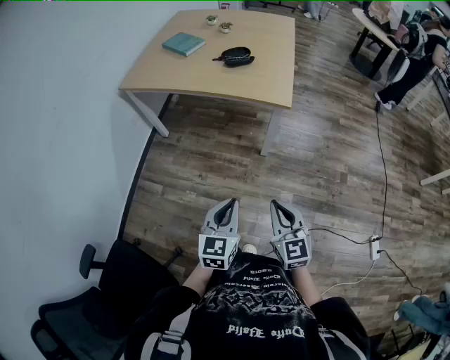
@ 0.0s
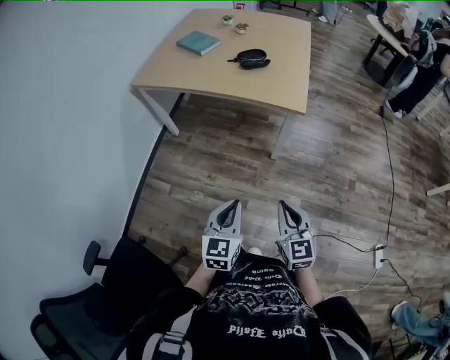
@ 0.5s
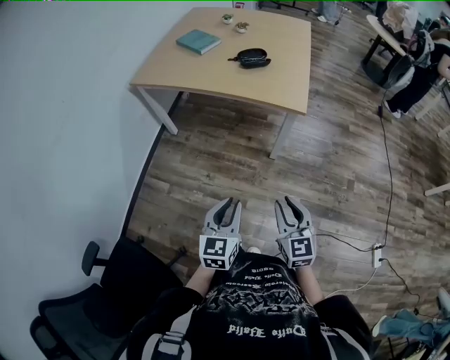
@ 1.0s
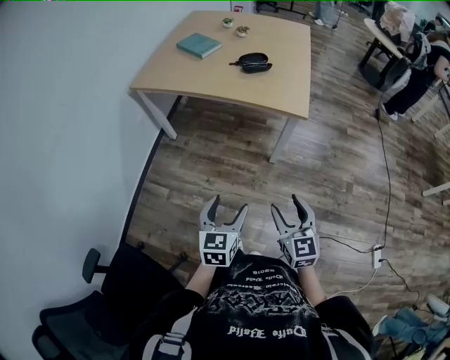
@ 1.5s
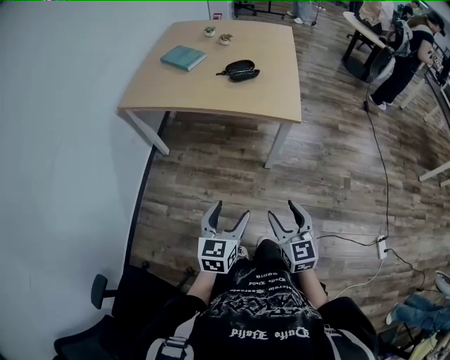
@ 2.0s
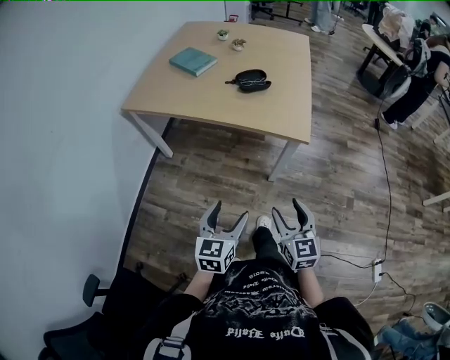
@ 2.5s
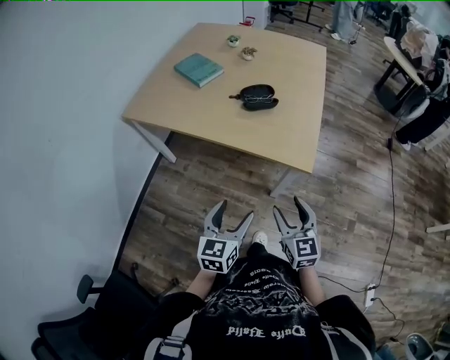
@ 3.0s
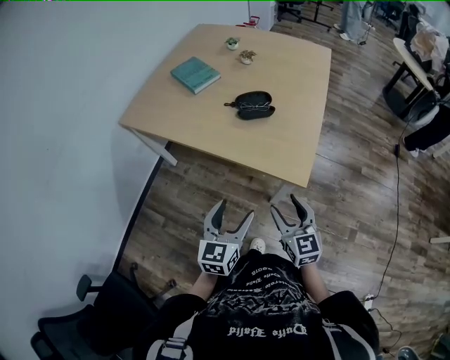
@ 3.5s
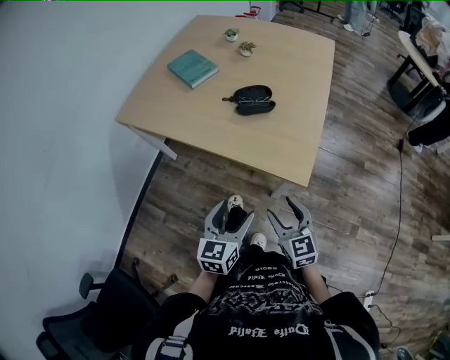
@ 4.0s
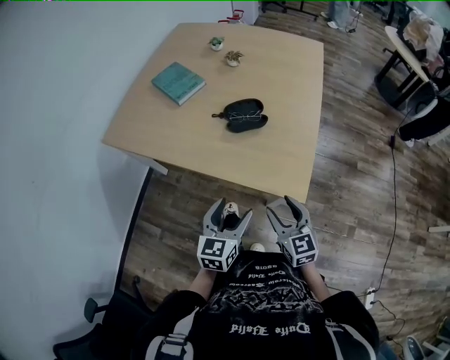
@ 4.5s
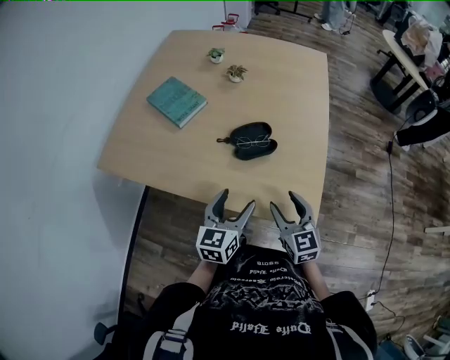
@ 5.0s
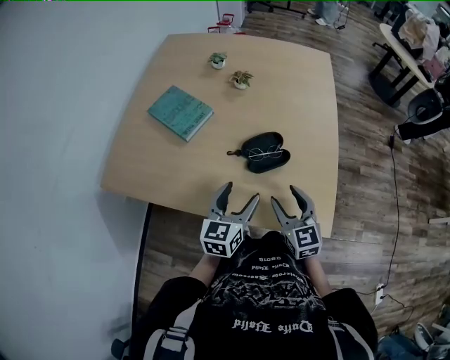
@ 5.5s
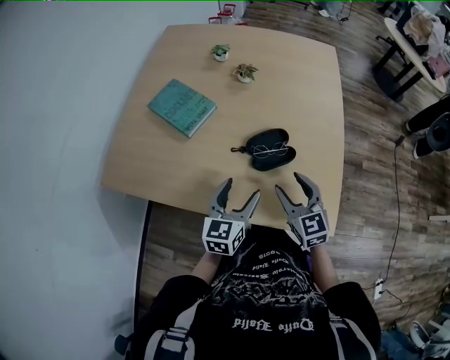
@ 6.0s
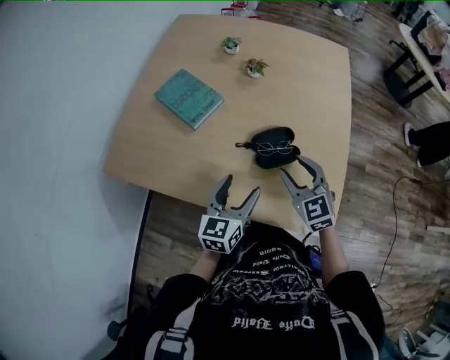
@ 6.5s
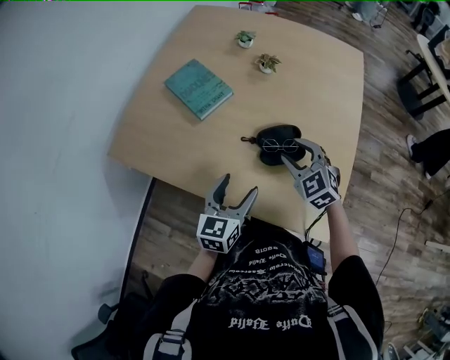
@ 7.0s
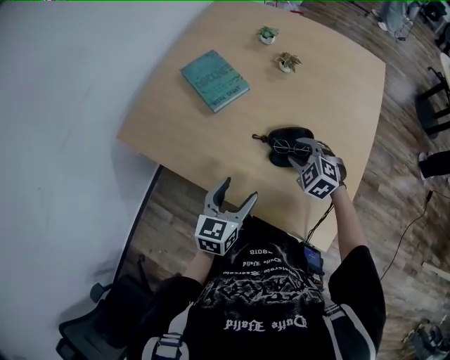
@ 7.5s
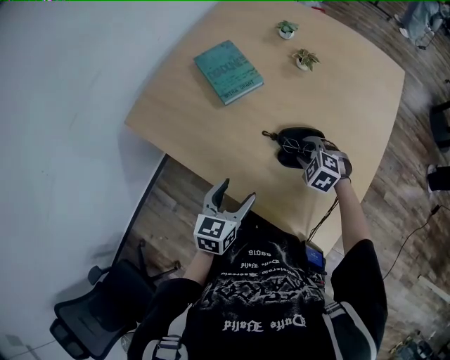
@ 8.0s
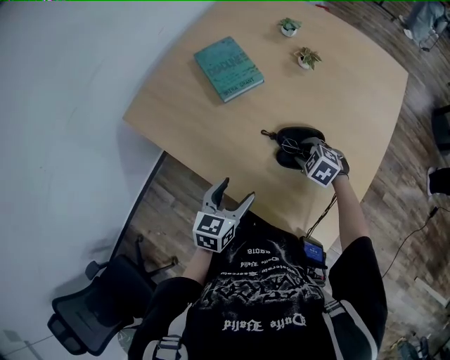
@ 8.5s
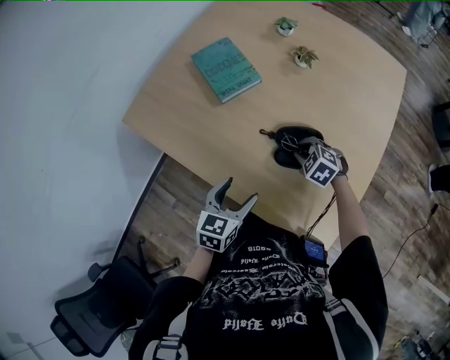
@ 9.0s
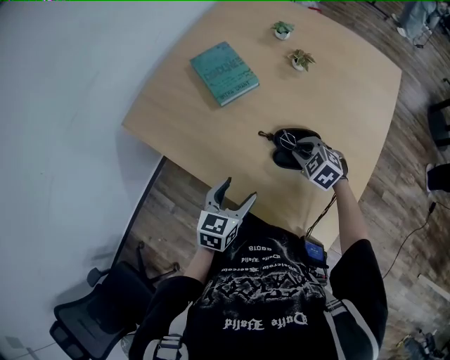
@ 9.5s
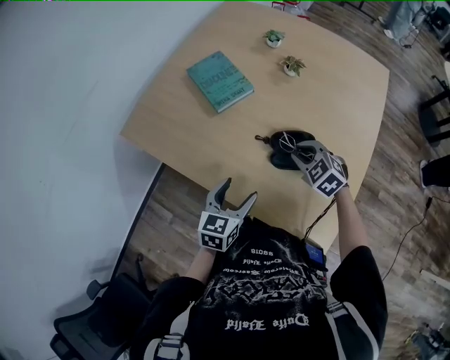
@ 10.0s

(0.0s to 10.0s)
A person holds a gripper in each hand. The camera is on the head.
0.0s - 2.0s: Both grippers travel together to the left and forward, some 10 cm. The right gripper opens its fingers. The left gripper opens up.
2.0s - 4.0s: The right gripper is displaced forward by some 30 cm. The left gripper shifts approximately 30 cm forward and to the right.
4.0s - 6.0s: Both grippers move forward, some 35 cm.
6.0s - 8.0s: The left gripper shifts by roughly 5 cm, and turns by about 20 degrees. Meanwhile the right gripper travels downward and forward by approximately 15 cm, and angles its fingers downward, by about 40 degrees.
8.0s - 10.0s: The right gripper heads upward, covering about 5 cm, and closes up.

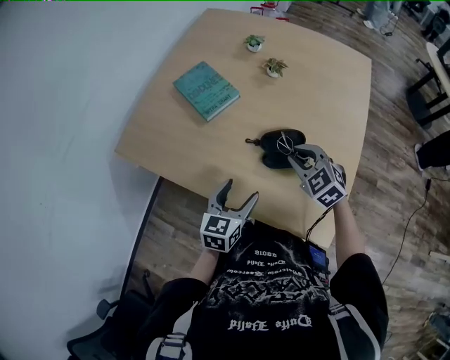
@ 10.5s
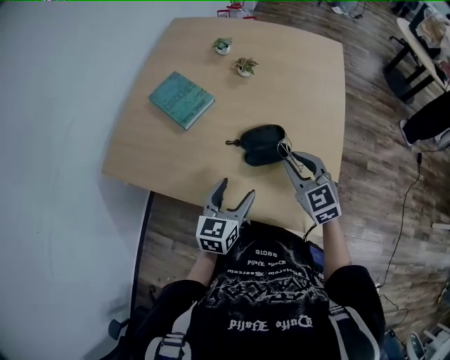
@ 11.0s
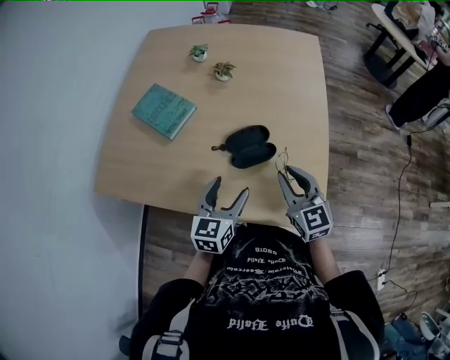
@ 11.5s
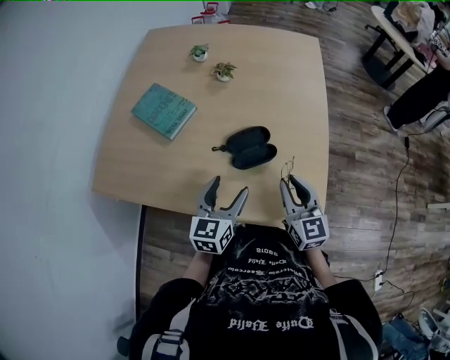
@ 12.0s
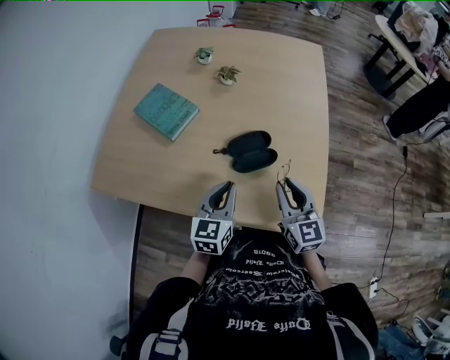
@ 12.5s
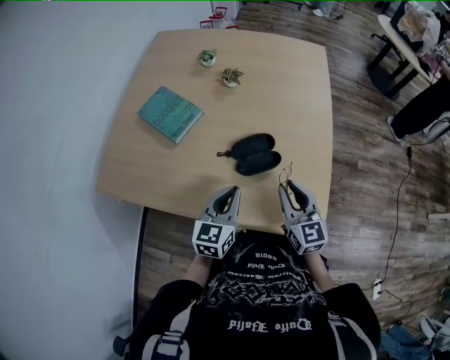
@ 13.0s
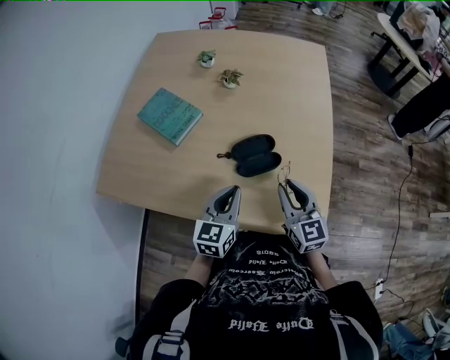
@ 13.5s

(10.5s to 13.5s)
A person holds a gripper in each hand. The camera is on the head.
10.5s - 12.0s: The left gripper ends up roughly 5 cm from where it was. The right gripper moves backward and to the right, approximately 10 cm, and rotates approximately 50 degrees.
12.0s - 13.5s: The left gripper closes.

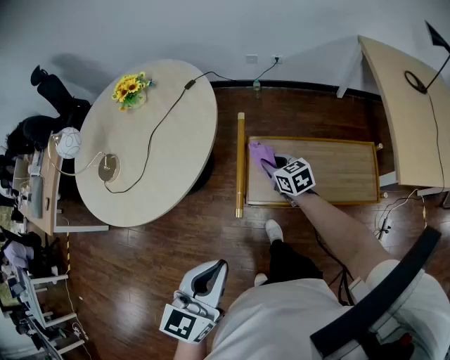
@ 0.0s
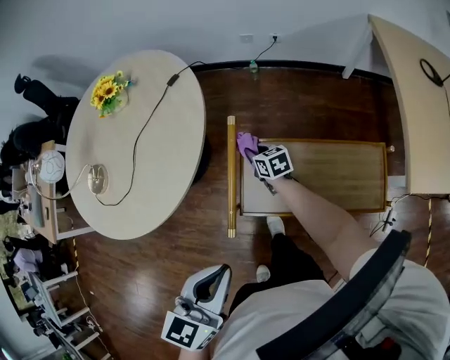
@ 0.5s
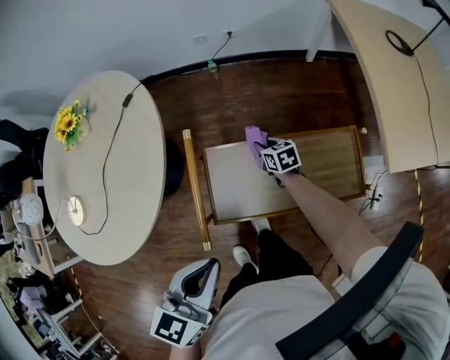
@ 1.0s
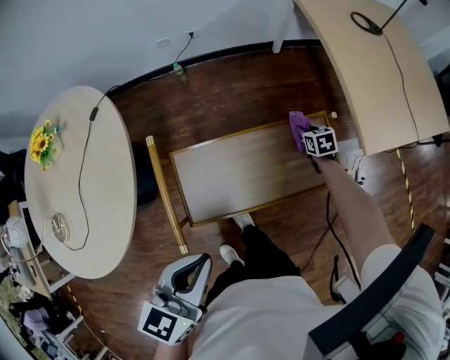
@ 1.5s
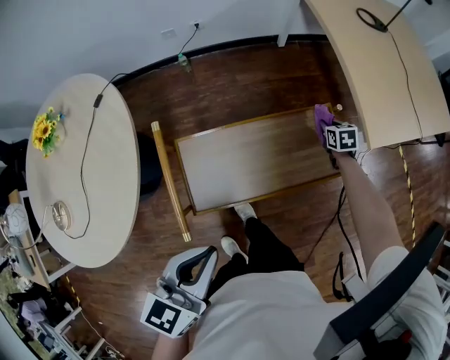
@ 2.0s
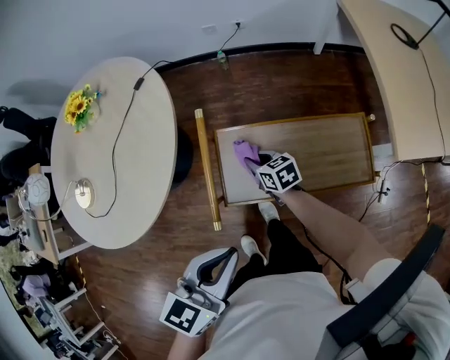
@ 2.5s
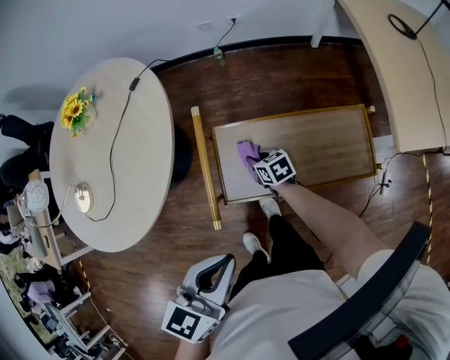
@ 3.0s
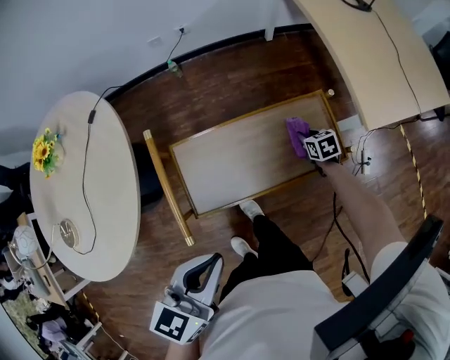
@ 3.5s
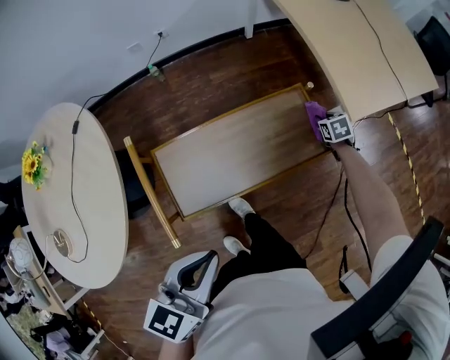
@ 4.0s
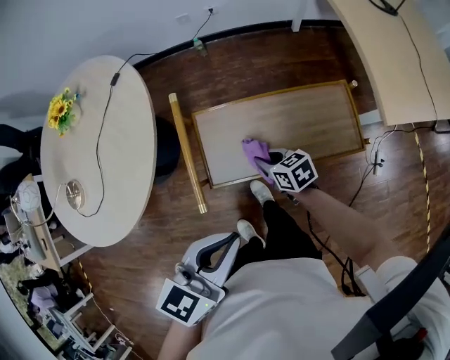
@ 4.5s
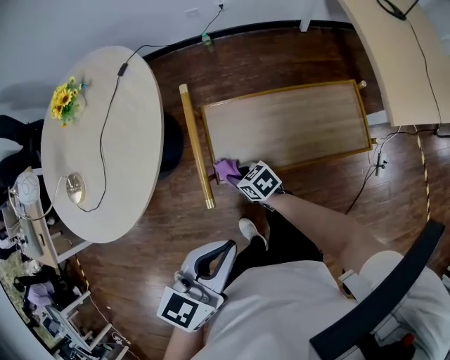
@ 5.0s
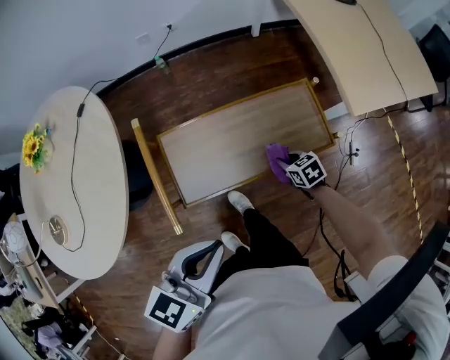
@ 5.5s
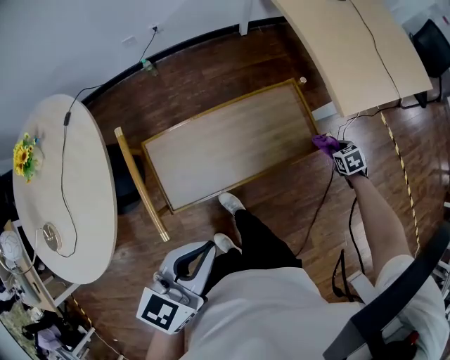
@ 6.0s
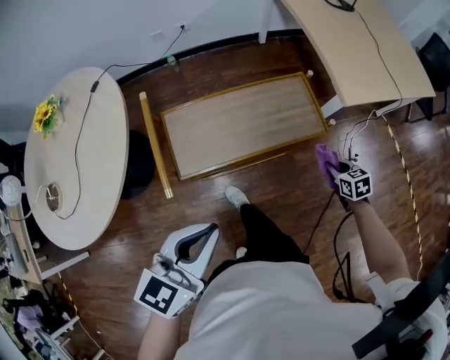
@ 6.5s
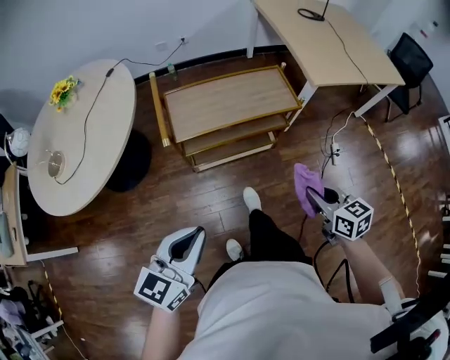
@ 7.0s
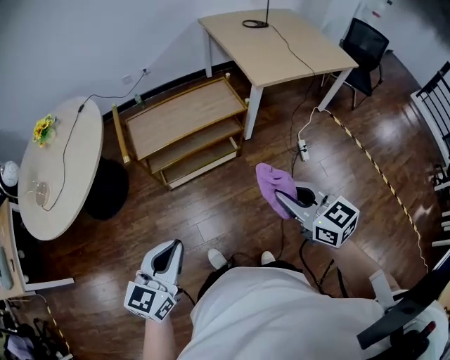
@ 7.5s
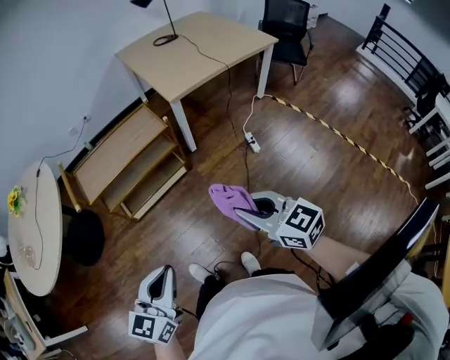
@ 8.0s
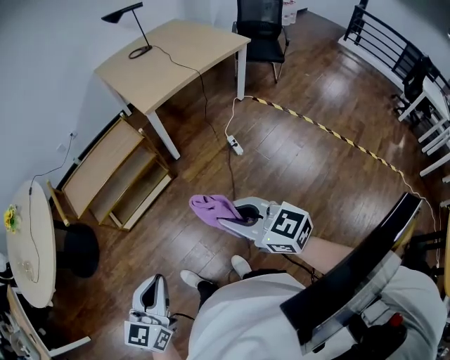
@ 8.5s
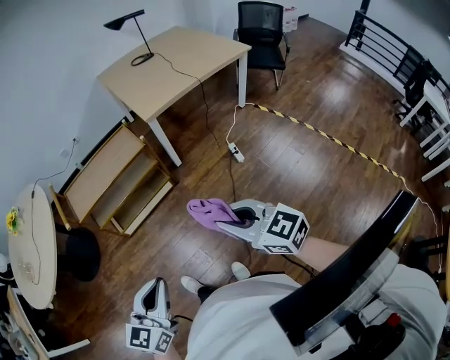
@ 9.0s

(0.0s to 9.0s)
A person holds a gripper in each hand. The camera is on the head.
0.0s - 2.0s: The right gripper shifts by roughly 50 cm, and turns by about 50 degrees. Meanwhile the left gripper ends up some 20 cm from where it was, and rotates roughly 20 degrees.
2.0s - 4.5s: The left gripper ends up about 5 cm from where it was. Meanwhile the right gripper swings up and down, roughly 10 cm each way, with 2 reversals, and rotates about 40 degrees.
4.5s - 7.0s: The right gripper moves roughly 50 cm, and swivels about 30 degrees; the left gripper moves about 25 cm.
7.0s - 9.0s: The left gripper heads to the right and backward, covering about 35 cm, while the right gripper moves to the right, backward and upward, approximately 30 cm, and changes its angle by some 20 degrees.

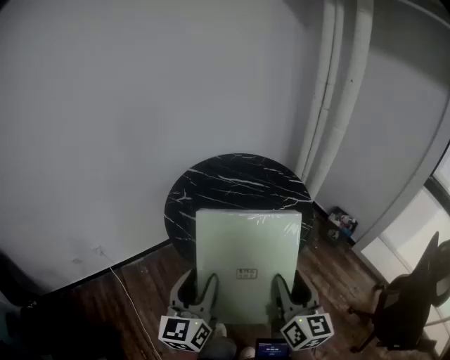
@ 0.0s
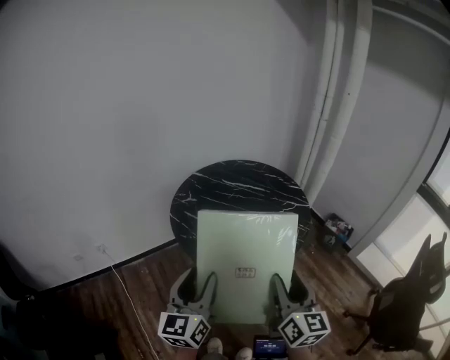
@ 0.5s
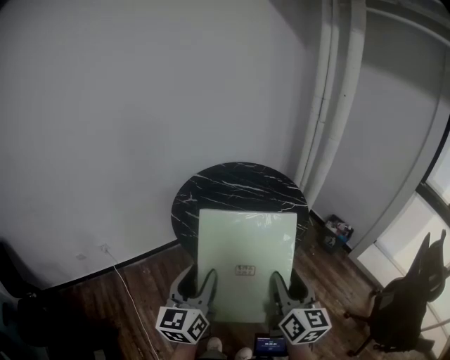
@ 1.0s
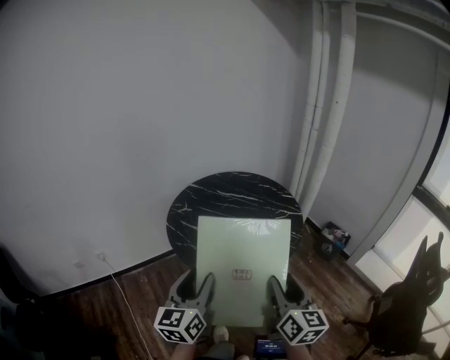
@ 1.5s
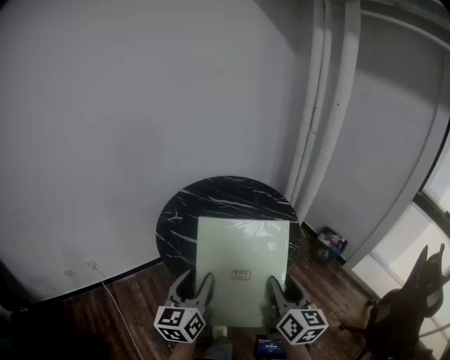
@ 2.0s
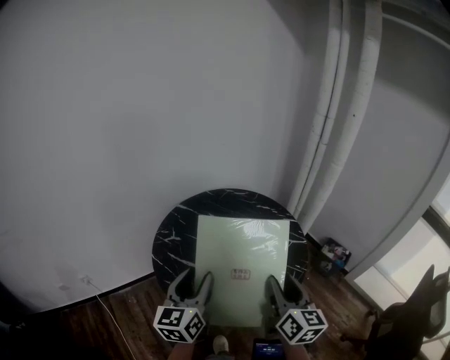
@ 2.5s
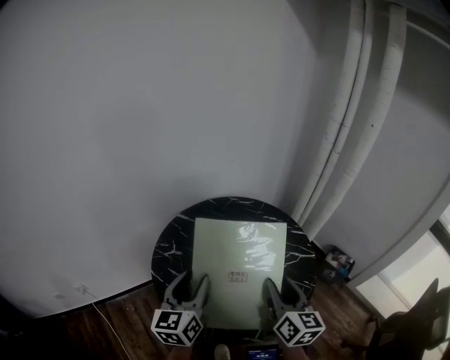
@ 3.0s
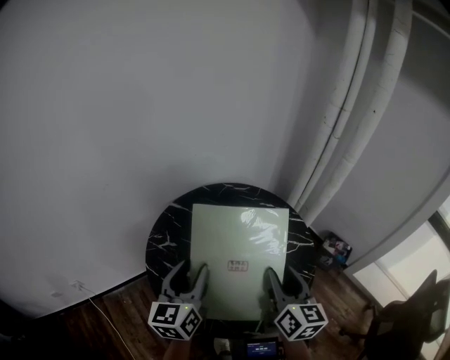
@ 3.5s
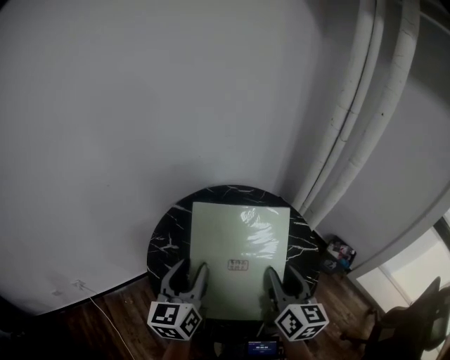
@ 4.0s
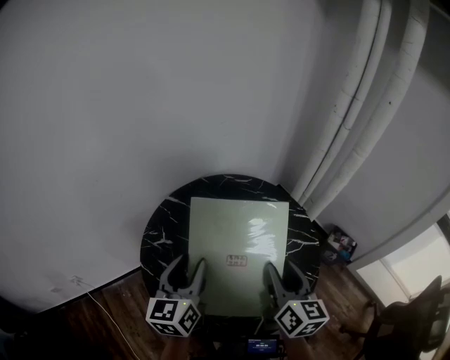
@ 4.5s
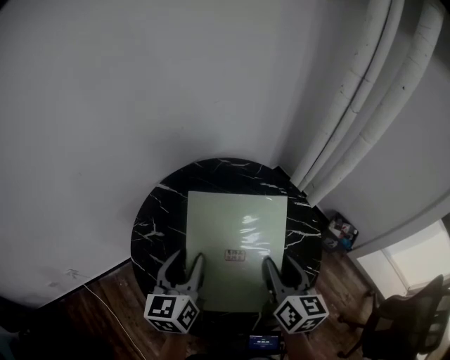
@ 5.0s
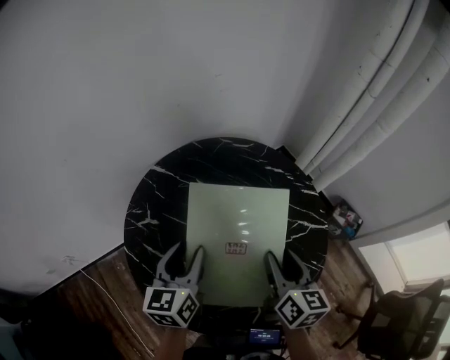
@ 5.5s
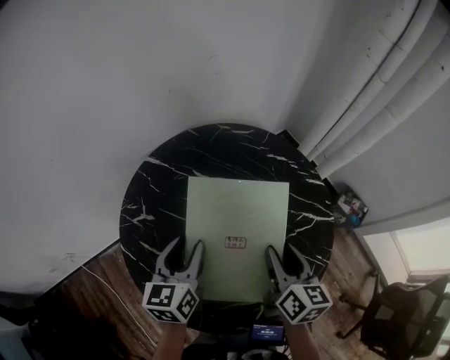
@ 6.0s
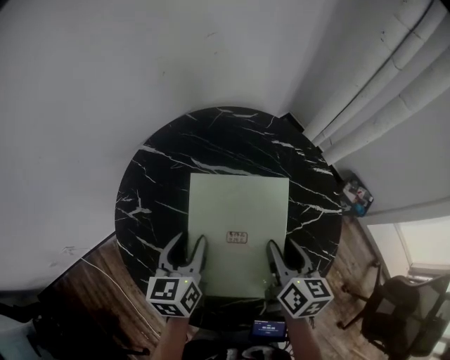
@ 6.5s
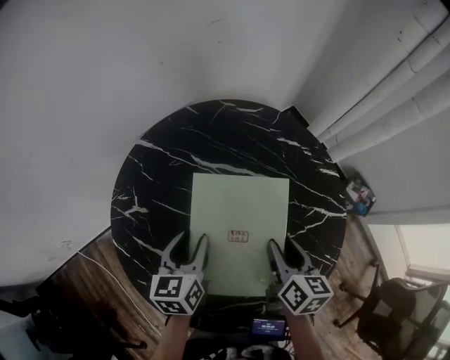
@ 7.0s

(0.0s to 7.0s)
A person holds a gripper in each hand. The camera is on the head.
0.0s - 2.0s: The left gripper travels backward and back again, roughly 5 cm each way. The right gripper moves about 5 cm backward and comes back.
2.0s - 3.5s: The two grippers go roughly 25 cm forward.
3.5s - 5.0s: Both grippers move forward and downward, roughly 10 cm.
5.0s - 7.0s: Both grippers travel together downward, roughly 15 cm. The right gripper changes its angle by approximately 20 degrees.
